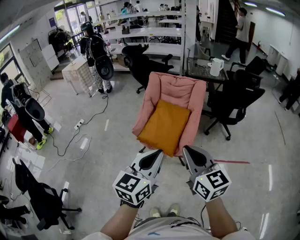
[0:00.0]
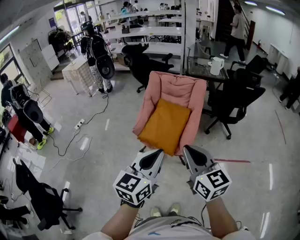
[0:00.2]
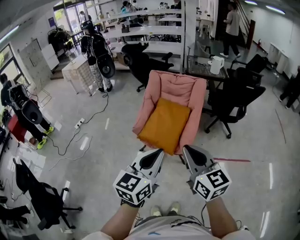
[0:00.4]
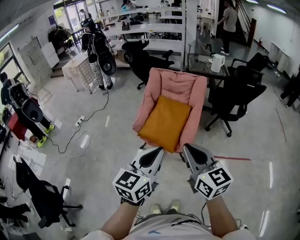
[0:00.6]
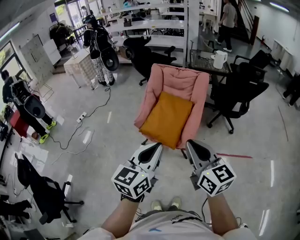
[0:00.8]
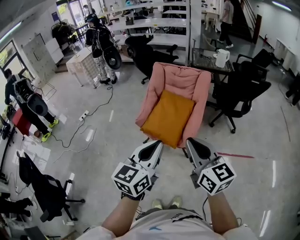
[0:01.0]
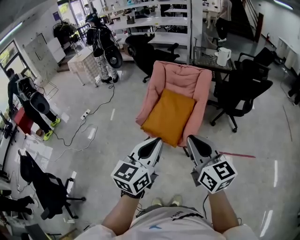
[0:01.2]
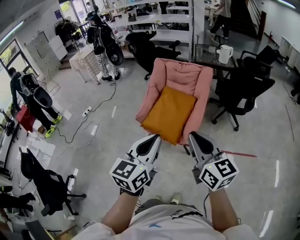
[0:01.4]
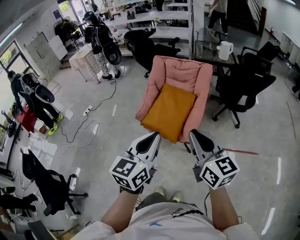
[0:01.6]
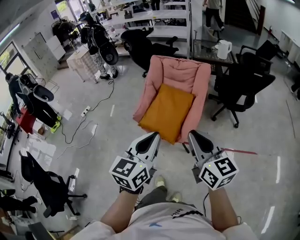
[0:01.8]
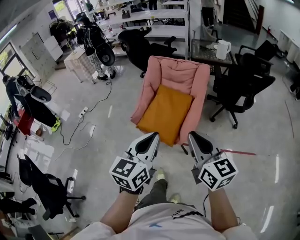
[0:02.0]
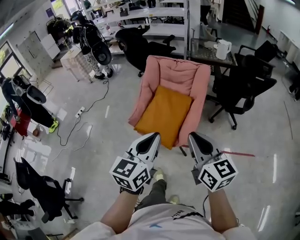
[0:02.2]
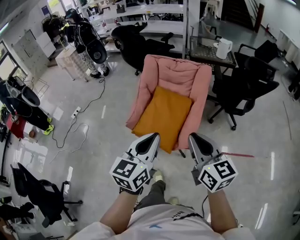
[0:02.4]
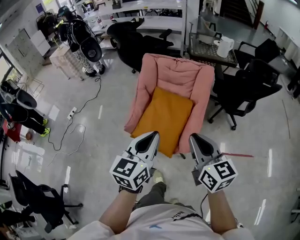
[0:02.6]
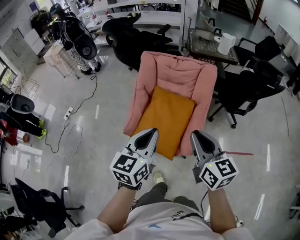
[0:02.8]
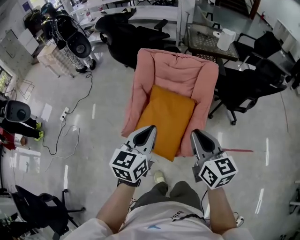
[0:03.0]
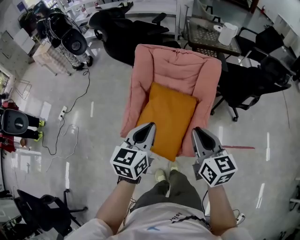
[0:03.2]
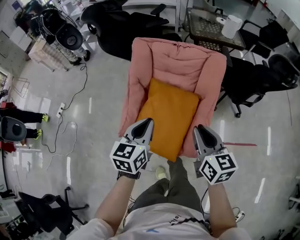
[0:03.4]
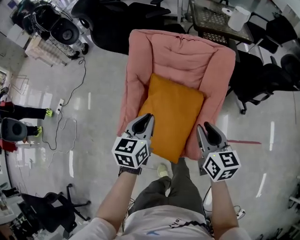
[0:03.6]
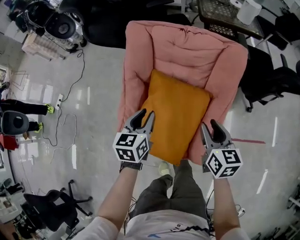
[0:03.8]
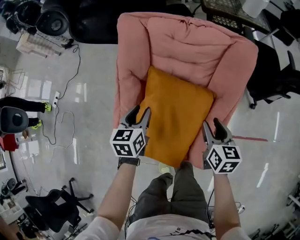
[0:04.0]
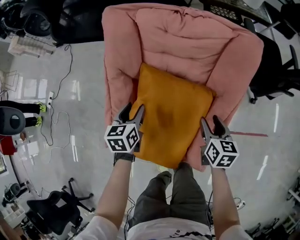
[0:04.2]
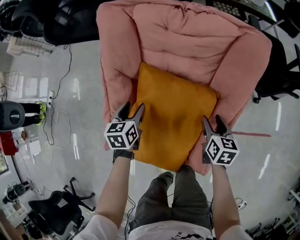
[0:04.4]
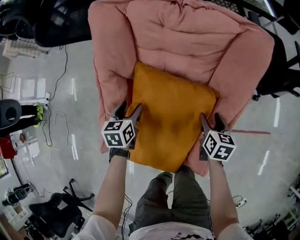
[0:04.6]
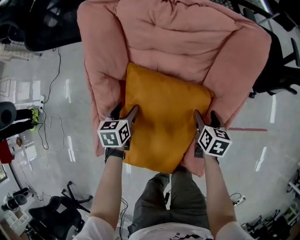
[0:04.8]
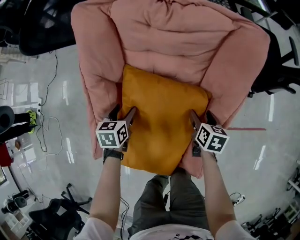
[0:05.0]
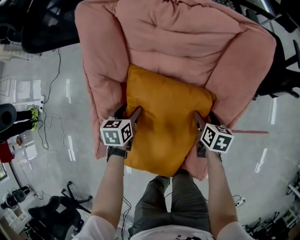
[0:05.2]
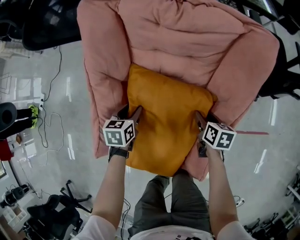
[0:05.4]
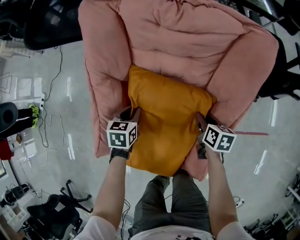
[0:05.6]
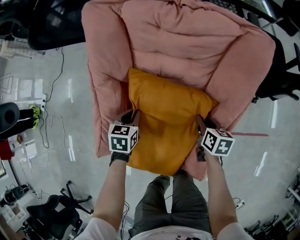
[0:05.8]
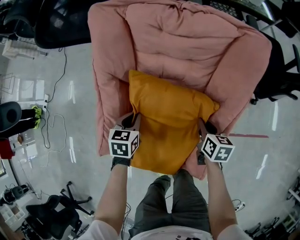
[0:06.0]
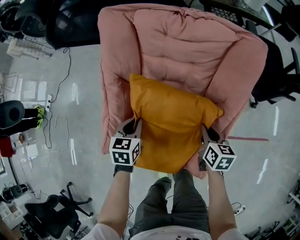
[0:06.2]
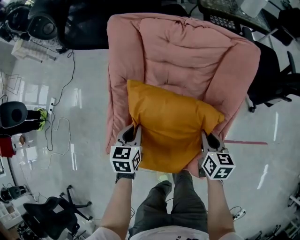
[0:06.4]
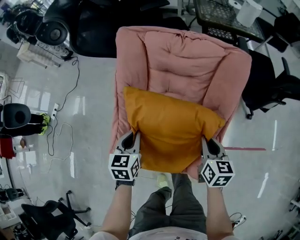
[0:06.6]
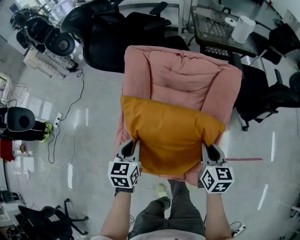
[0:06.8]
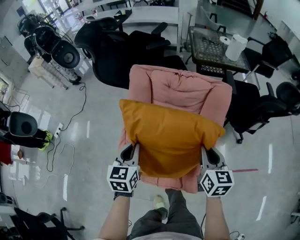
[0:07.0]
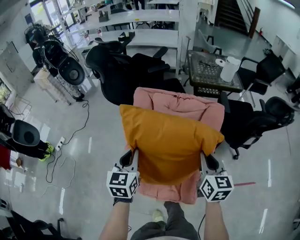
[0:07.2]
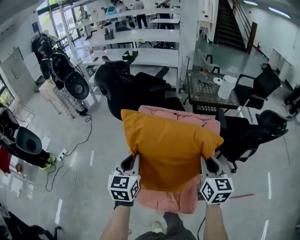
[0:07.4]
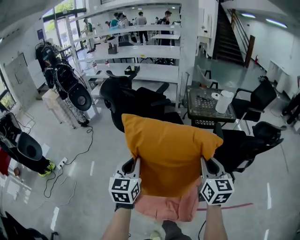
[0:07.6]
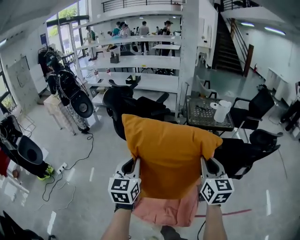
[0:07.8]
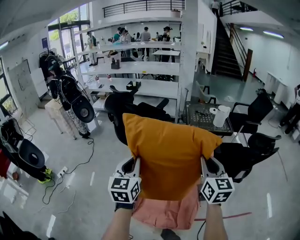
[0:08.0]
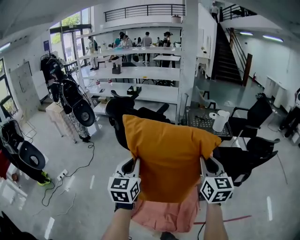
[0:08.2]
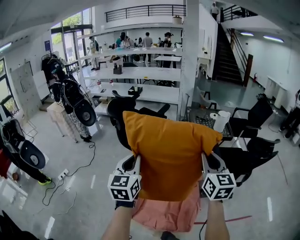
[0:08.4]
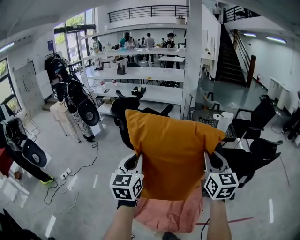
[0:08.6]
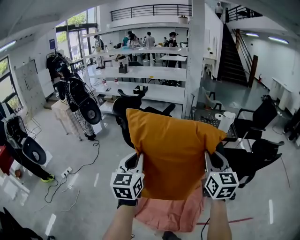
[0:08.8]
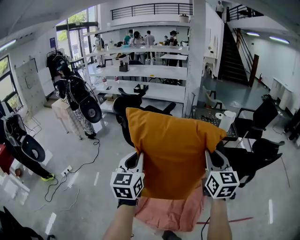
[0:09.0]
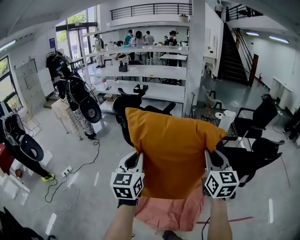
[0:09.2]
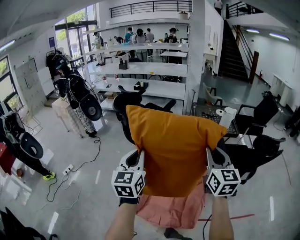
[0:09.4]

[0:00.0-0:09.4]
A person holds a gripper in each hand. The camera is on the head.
0:00.0 to 0:01.6: The left gripper moves approximately 5 cm; the right gripper travels to the right by about 10 cm.
0:01.6 to 0:03.2: The grippers both shift forward by roughly 40 cm. The right gripper rotates approximately 20 degrees.
0:03.2 to 0:04.8: The grippers both shift downward and forward by some 50 cm. The left gripper tilts its fingers some 30 degrees downward, and opens its fingers, while the right gripper angles its fingers downward, by roughly 30 degrees, and opens.
0:04.8 to 0:06.2: The right gripper ends up about 5 cm from where it was, and closes its fingers; the left gripper is displaced upward and backward by about 10 cm, and closes.
0:06.2 to 0:07.8: The grippers both shift upward by about 50 cm. The left gripper angles its fingers upward, by some 40 degrees. The right gripper tilts its fingers some 40 degrees upward.
0:07.8 to 0:09.4: The two grippers go approximately 5 cm upward.

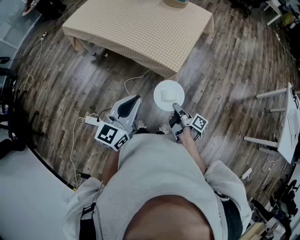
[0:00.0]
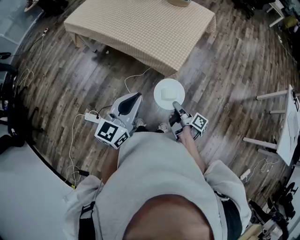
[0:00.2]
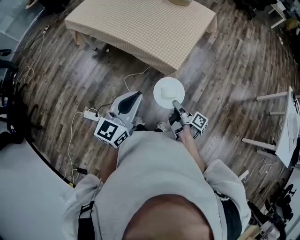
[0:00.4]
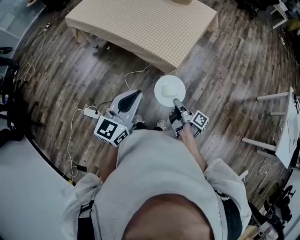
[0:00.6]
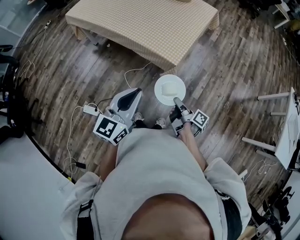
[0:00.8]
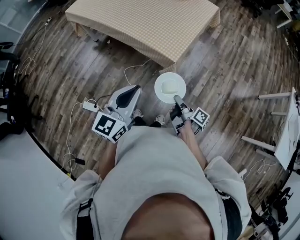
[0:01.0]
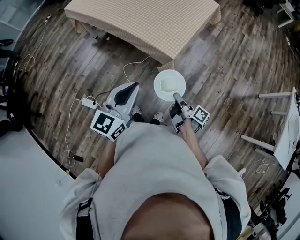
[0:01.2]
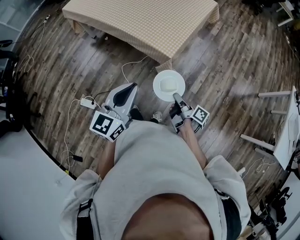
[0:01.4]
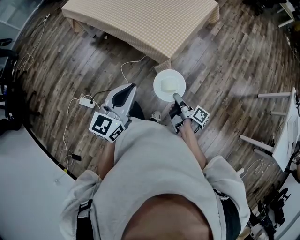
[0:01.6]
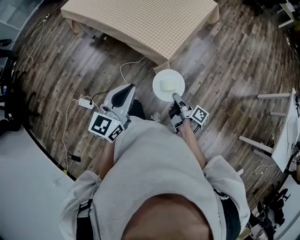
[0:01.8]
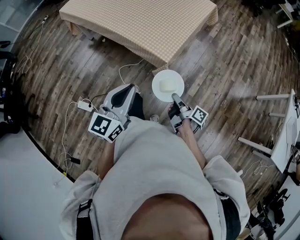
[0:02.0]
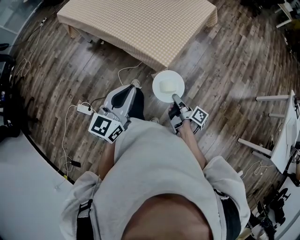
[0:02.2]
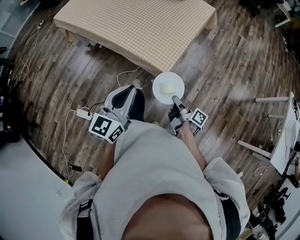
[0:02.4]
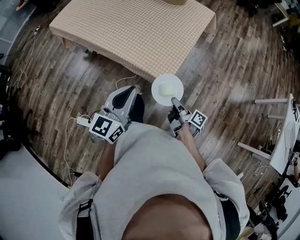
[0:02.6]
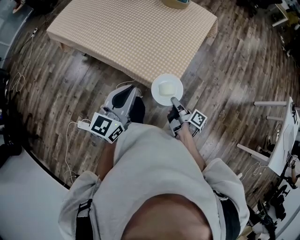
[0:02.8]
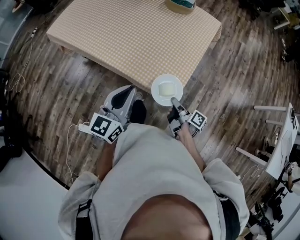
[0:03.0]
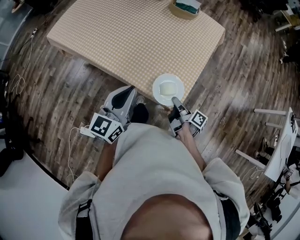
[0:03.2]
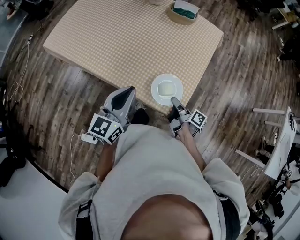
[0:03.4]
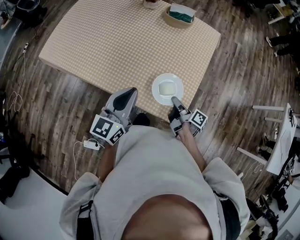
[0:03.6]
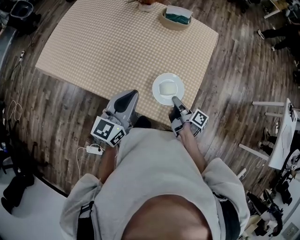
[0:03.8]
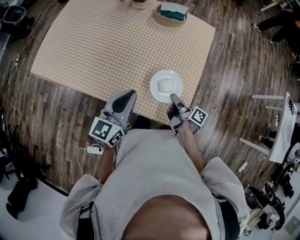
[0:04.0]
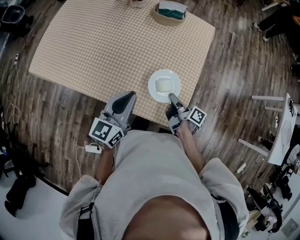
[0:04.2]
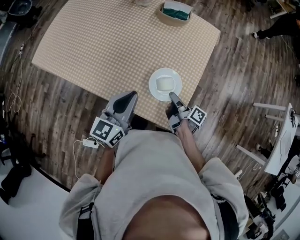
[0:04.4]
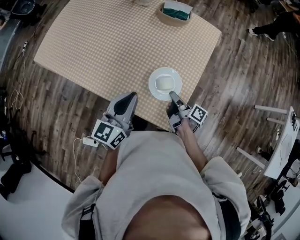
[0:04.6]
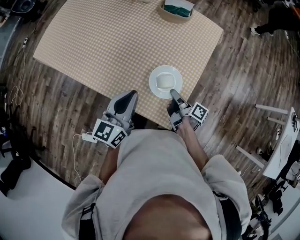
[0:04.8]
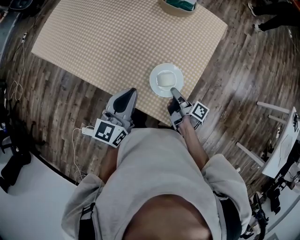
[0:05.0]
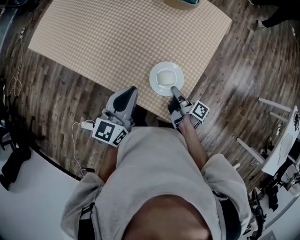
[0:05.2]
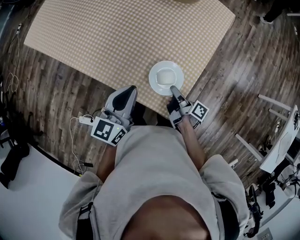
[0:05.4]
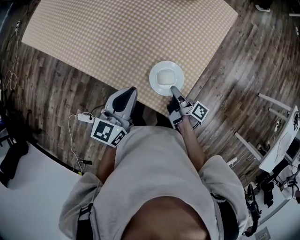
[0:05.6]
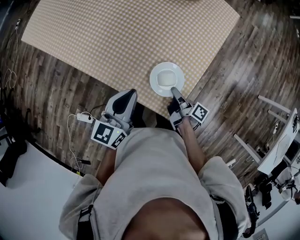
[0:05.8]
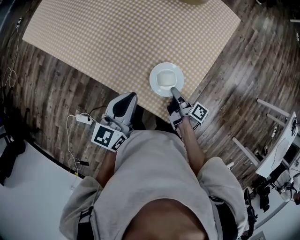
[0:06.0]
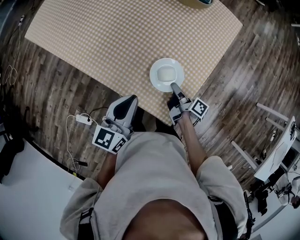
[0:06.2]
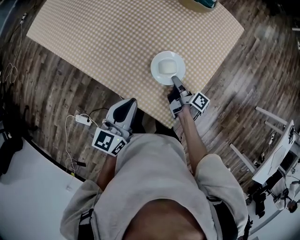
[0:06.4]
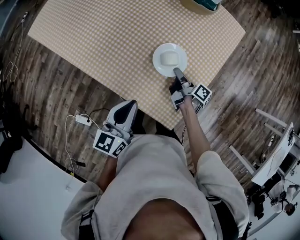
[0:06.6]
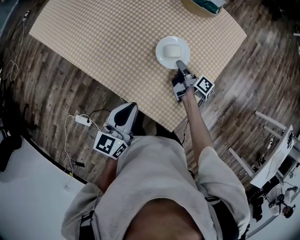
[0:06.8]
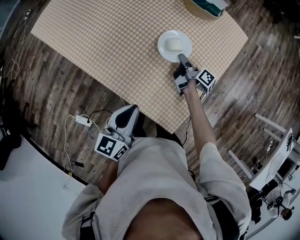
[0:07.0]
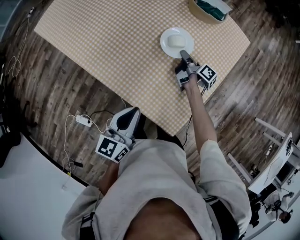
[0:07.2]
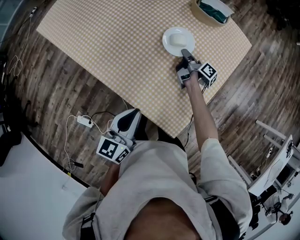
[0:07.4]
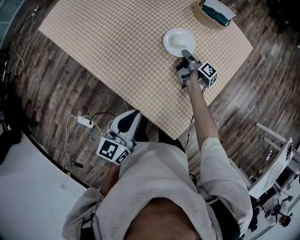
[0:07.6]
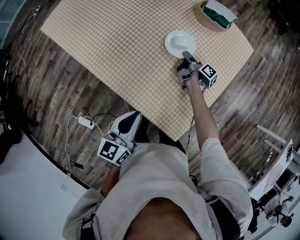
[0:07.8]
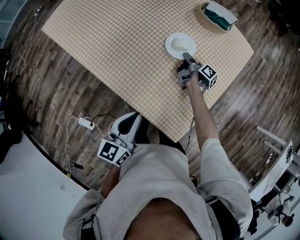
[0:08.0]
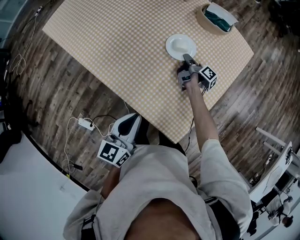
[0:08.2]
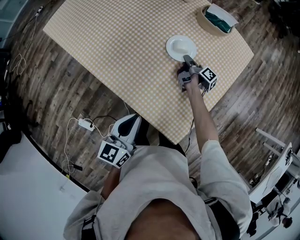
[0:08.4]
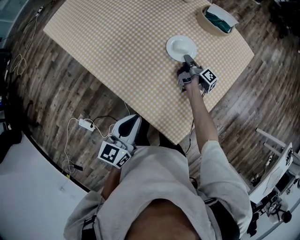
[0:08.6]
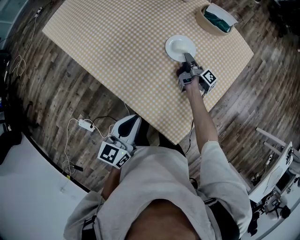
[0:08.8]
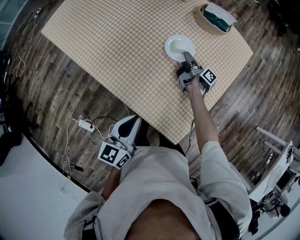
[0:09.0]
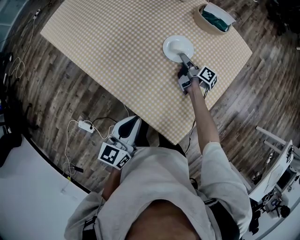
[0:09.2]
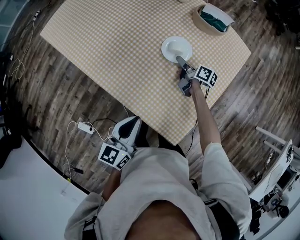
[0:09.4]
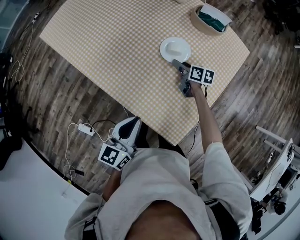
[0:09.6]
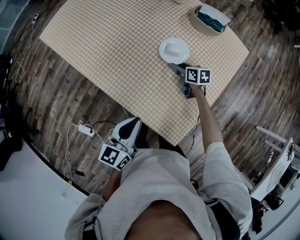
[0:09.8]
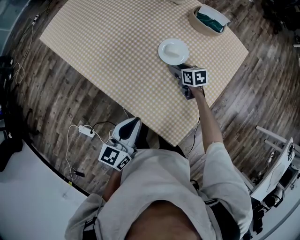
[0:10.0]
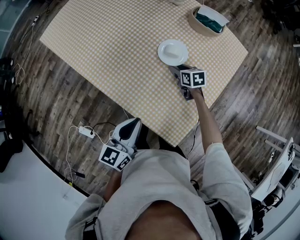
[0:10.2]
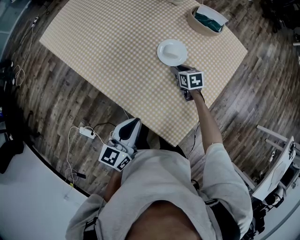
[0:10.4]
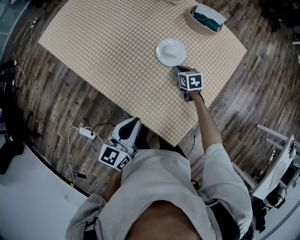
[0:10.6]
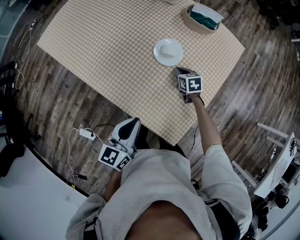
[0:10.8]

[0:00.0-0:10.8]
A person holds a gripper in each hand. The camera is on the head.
0:00.0 to 0:01.6: The left gripper moves some 5 cm.
0:01.6 to 0:03.0: The left gripper shifts by roughly 30 cm.
0:03.0 to 0:04.6: The left gripper moves roughly 20 cm.
0:04.6 to 0:06.2: The left gripper heads downward, covering roughly 5 cm.
0:06.2 to 0:07.8: The left gripper changes place by approximately 5 cm.

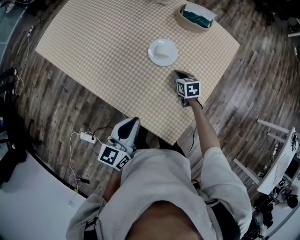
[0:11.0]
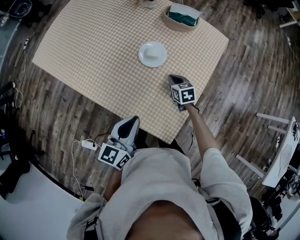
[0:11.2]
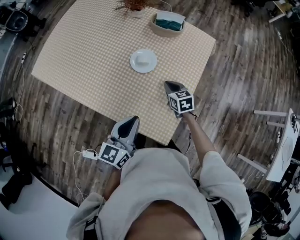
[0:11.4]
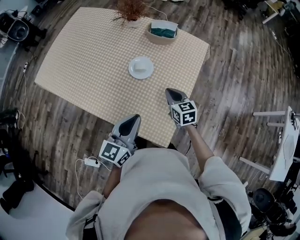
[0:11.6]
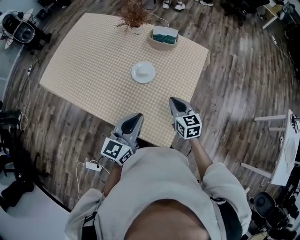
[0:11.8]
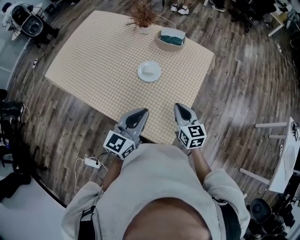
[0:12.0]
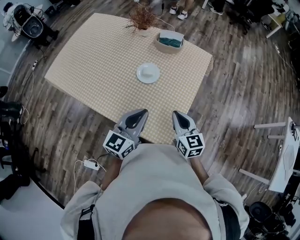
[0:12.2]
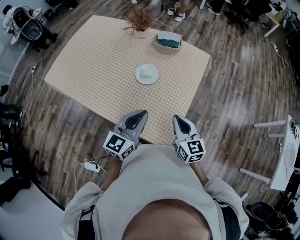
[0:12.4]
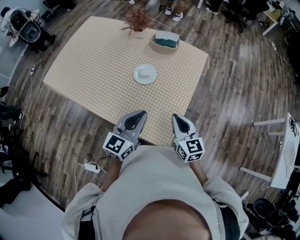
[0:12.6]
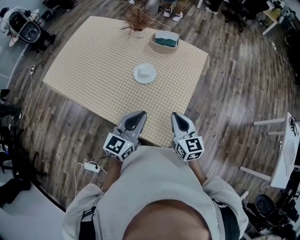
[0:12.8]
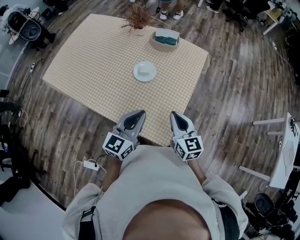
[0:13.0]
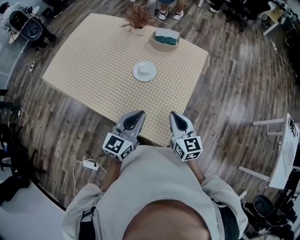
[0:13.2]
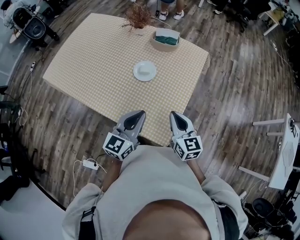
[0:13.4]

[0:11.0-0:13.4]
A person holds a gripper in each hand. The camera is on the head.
0:11.0 to 0:12.2: The left gripper heads upward, covering roughly 10 cm, and rotates roughly 20 degrees.

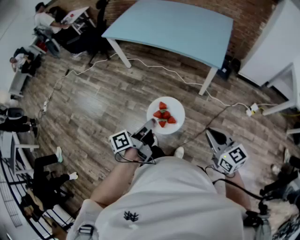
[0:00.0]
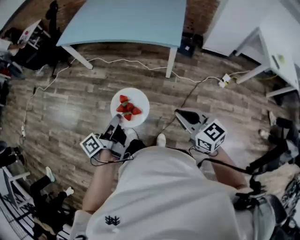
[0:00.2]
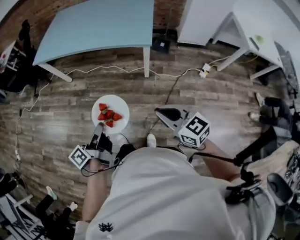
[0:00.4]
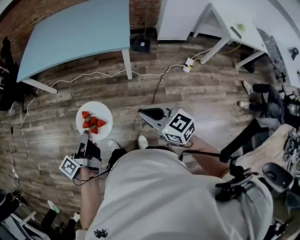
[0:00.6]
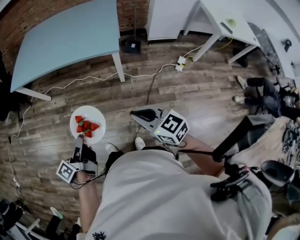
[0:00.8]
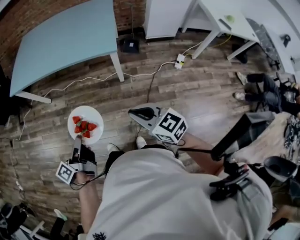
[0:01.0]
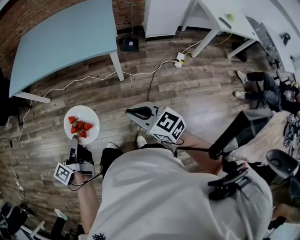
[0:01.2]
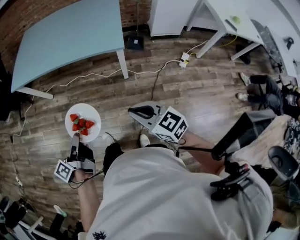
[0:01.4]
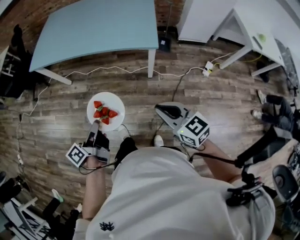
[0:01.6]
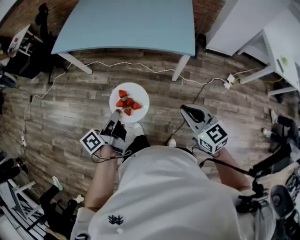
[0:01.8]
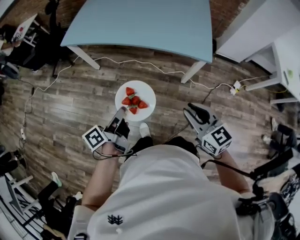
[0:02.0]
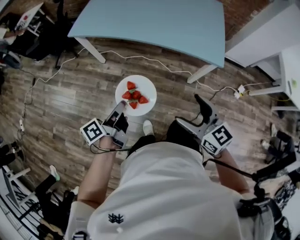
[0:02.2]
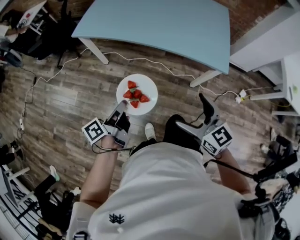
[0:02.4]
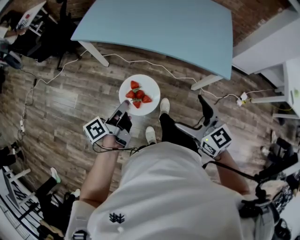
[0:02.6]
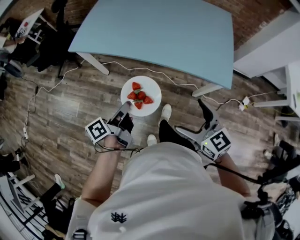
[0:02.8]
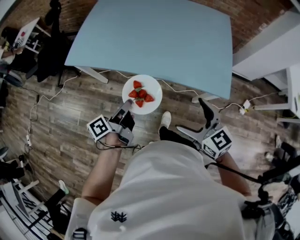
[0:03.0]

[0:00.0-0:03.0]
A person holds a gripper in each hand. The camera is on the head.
0:00.0 to 0:01.6: Both grippers travel together forward, approximately 15 cm.
0:01.6 to 0:03.0: The right gripper heads forward and to the left, covering some 35 cm, and opens, while the left gripper travels forward by about 35 cm.
